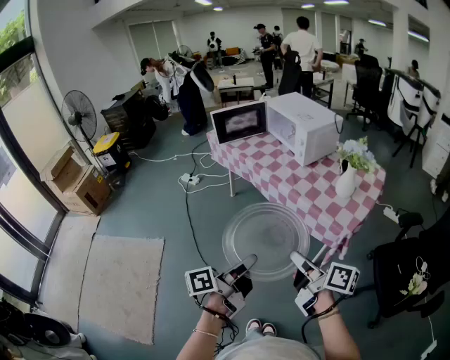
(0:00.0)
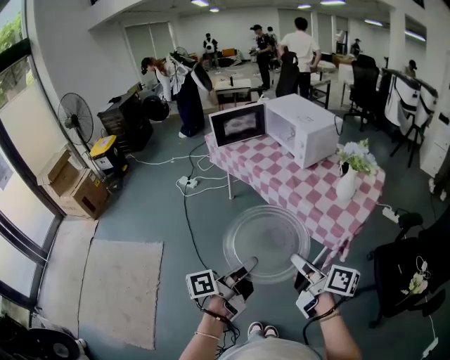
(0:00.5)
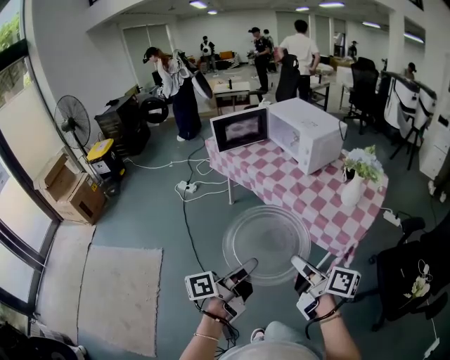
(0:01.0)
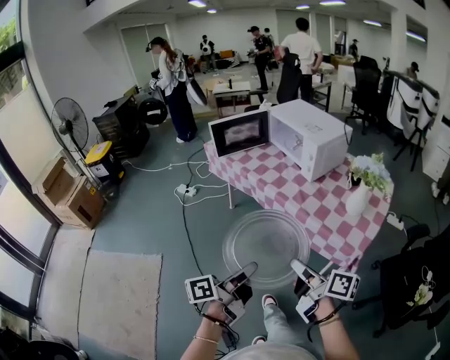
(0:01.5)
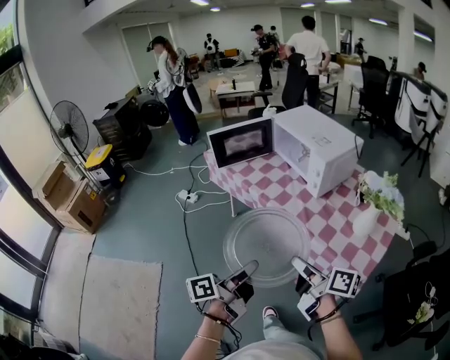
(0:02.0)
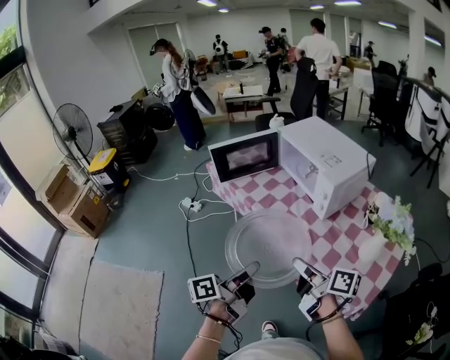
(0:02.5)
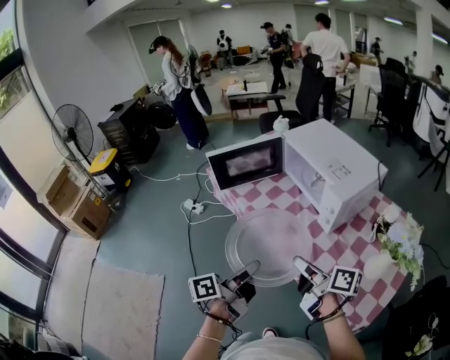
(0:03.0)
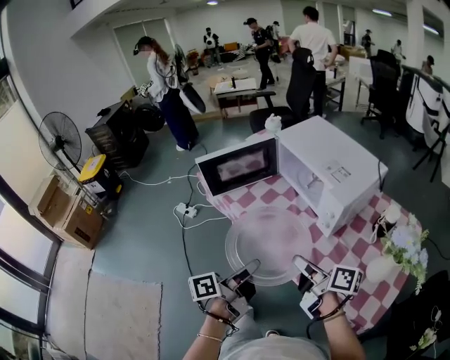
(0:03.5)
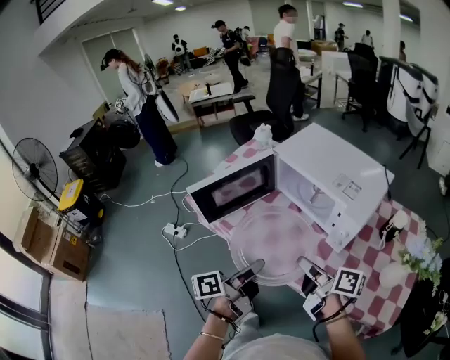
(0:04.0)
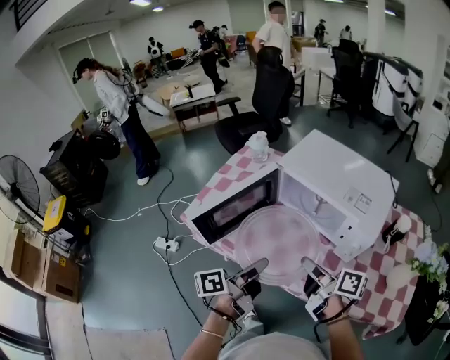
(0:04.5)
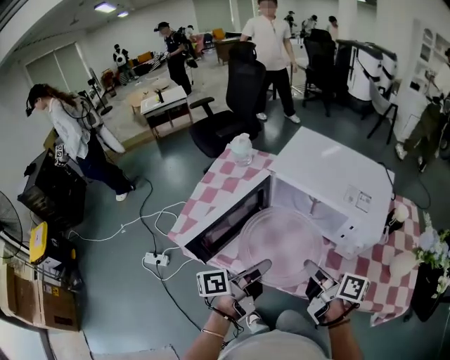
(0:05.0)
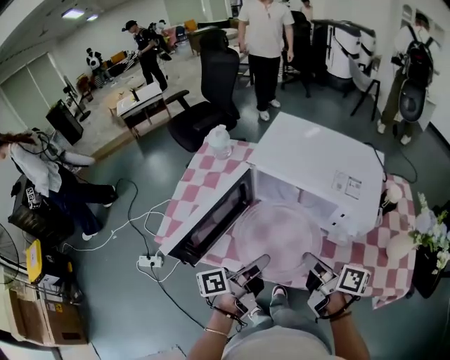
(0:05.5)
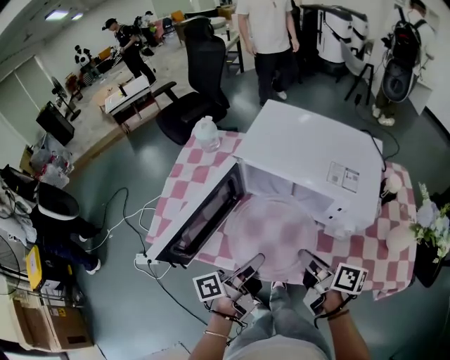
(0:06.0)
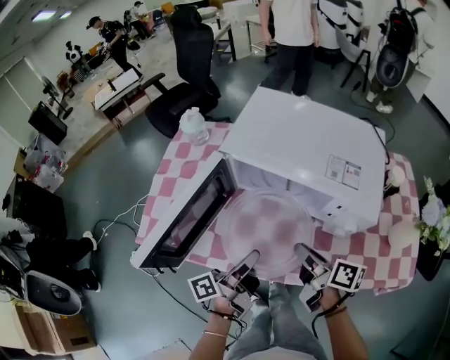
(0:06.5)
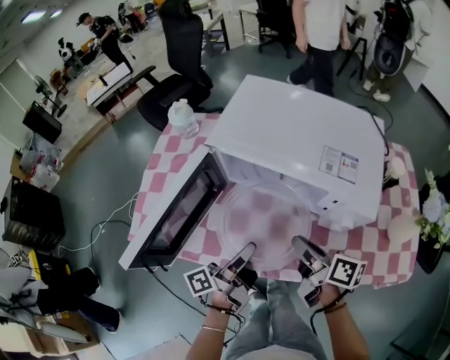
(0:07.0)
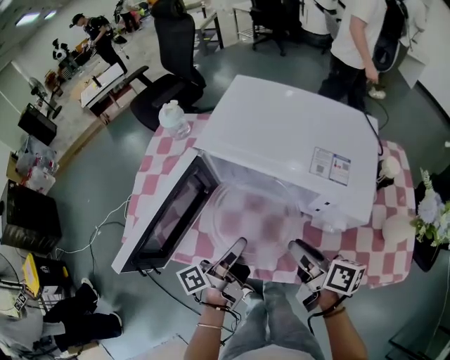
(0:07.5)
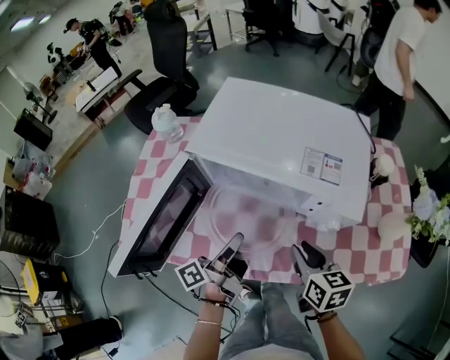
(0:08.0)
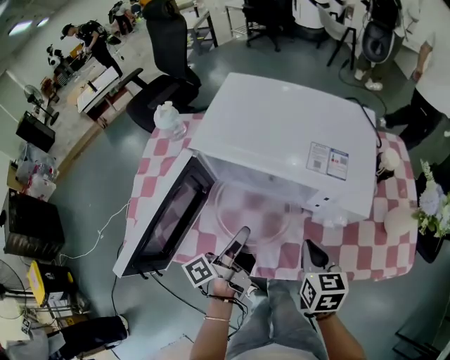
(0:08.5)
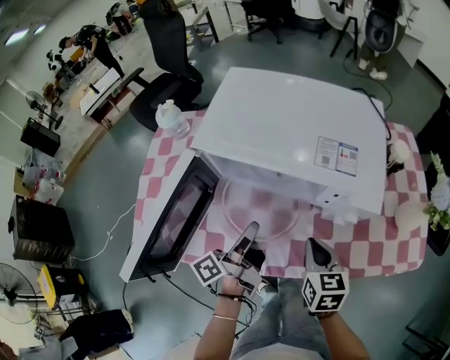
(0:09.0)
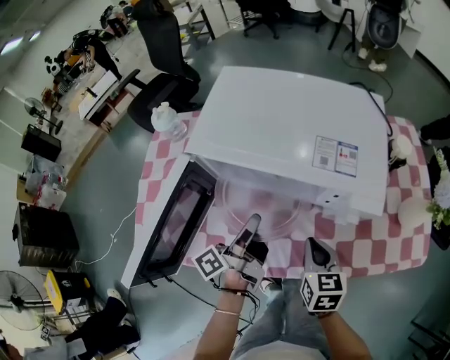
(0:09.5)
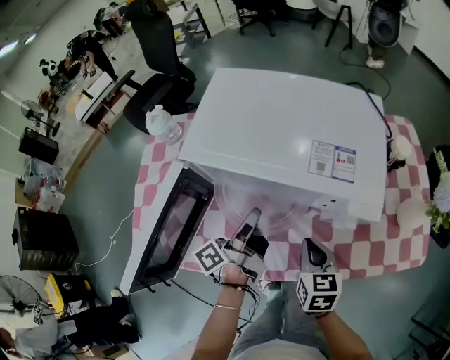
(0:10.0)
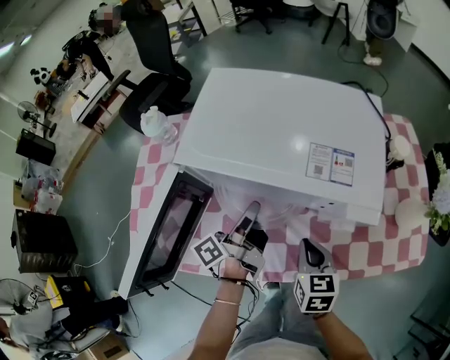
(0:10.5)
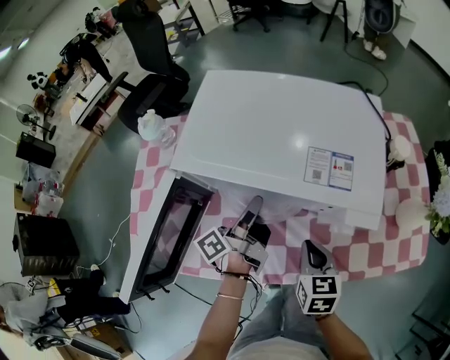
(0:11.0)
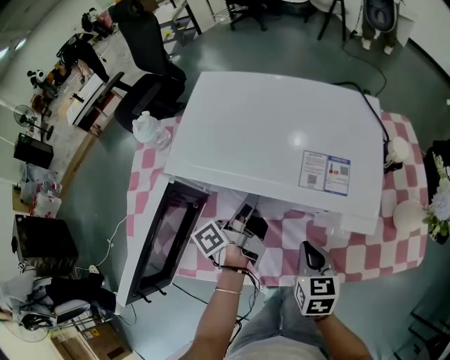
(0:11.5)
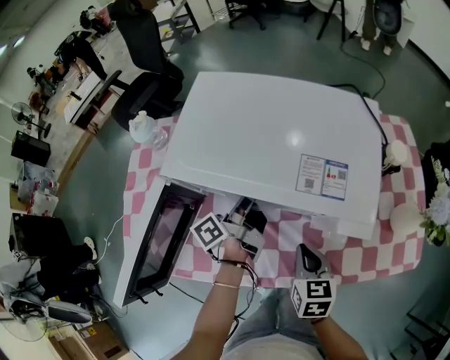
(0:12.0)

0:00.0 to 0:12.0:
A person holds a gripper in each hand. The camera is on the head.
0:00.0 to 0:02.0: Both grippers move forward, about 20 cm.
0:02.0 to 0:04.0: The two grippers go some 35 cm forward.
0:04.0 to 0:06.0: The right gripper travels forward and downward by some 10 cm, and turns by about 30 degrees; the left gripper travels forward by approximately 15 cm, and swivels roughly 20 degrees.
0:06.0 to 0:08.0: The right gripper travels to the right by approximately 5 cm, and swivels roughly 40 degrees. Meanwhile the left gripper is displaced forward by approximately 5 cm.
0:08.0 to 0:10.0: The left gripper goes some 5 cm forward; the right gripper closes.
0:10.0 to 0:12.0: The left gripper heads forward, covering roughly 10 cm.

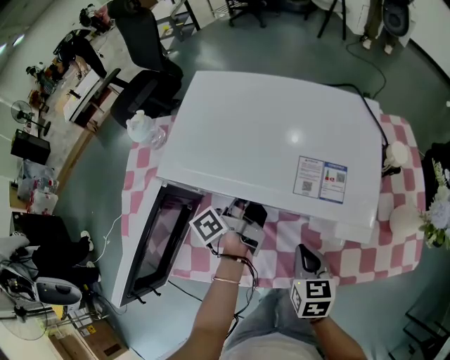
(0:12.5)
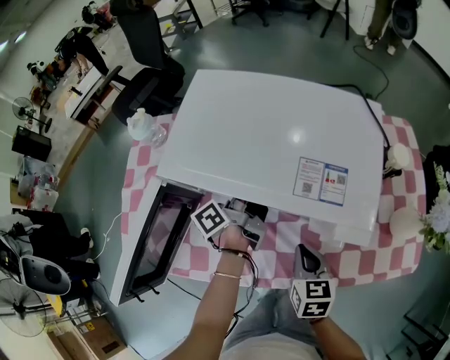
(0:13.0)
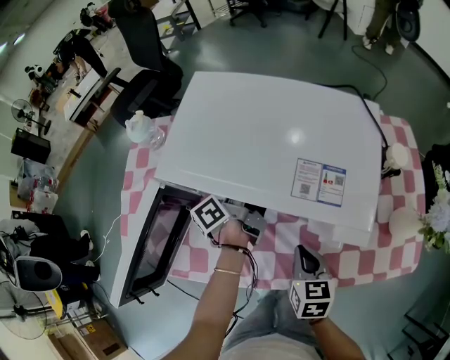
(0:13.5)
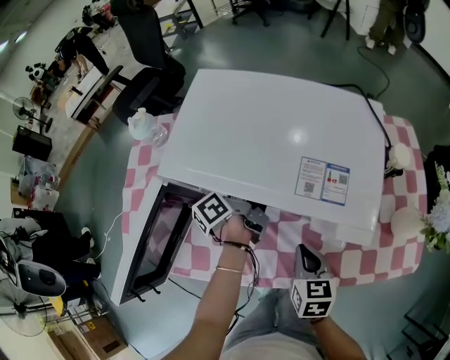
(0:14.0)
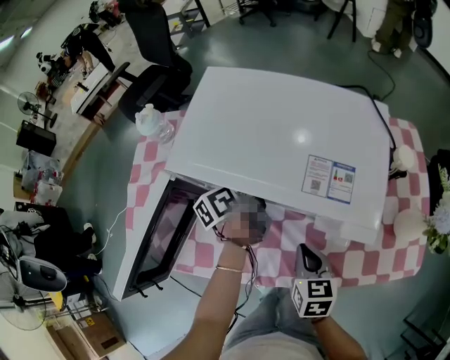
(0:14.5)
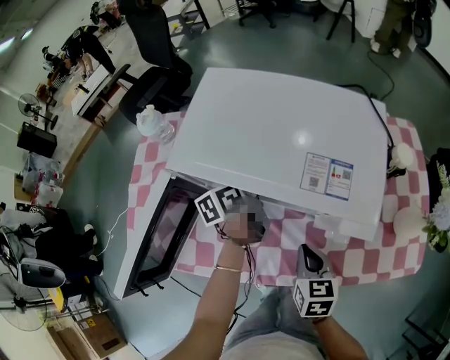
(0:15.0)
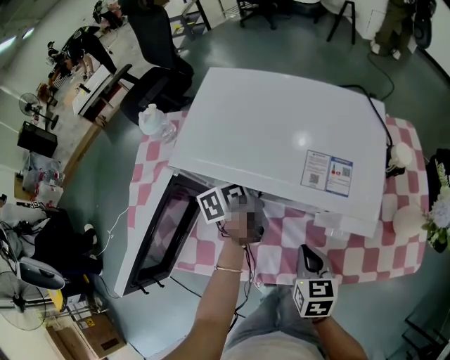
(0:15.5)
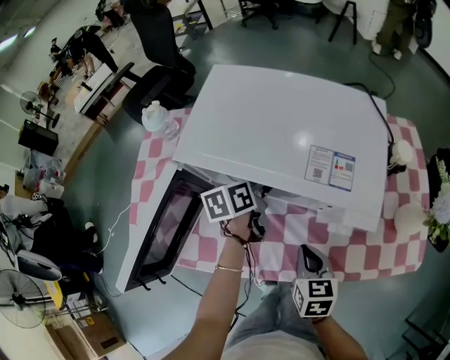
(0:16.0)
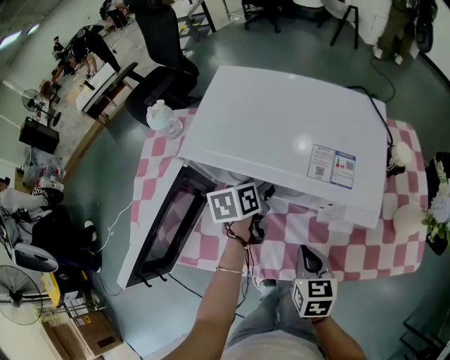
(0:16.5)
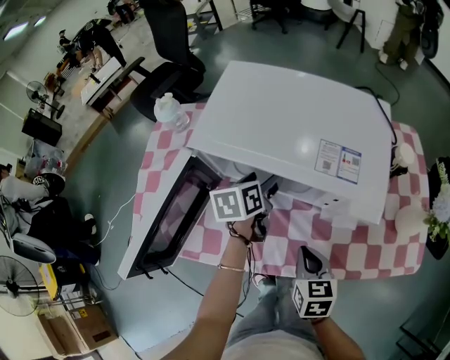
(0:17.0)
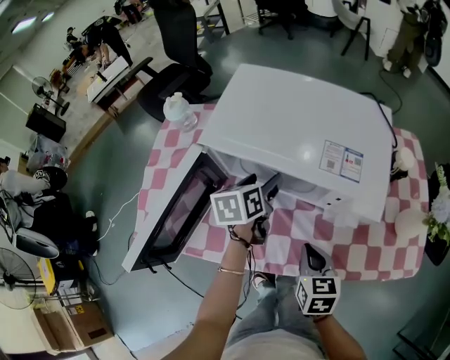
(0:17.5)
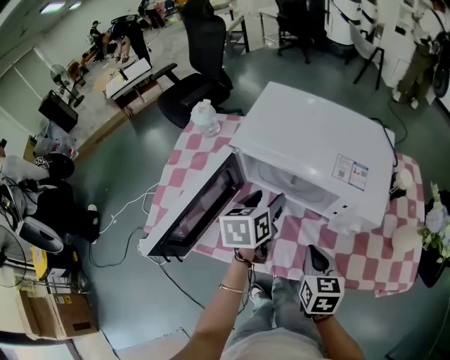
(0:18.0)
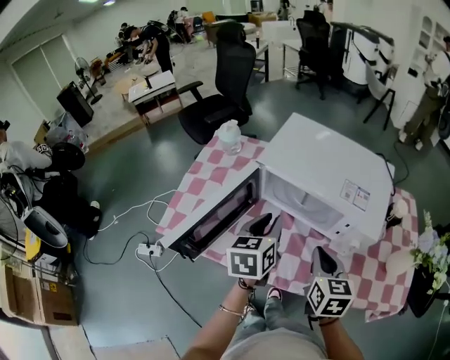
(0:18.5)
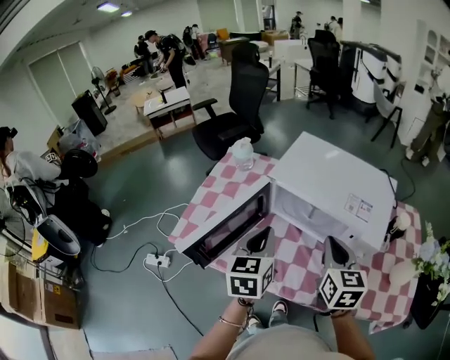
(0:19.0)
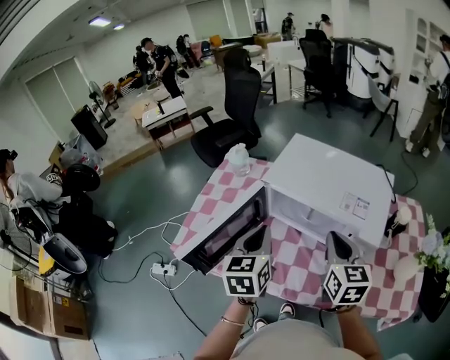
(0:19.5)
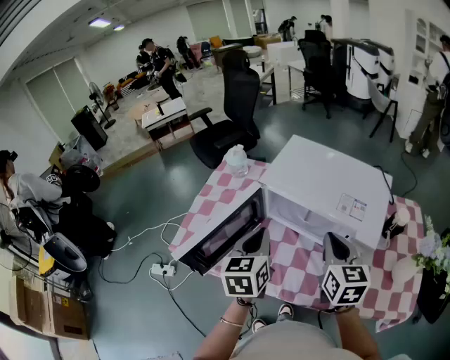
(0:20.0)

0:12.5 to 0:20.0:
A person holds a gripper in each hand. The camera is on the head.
0:12.5 to 0:14.5: The left gripper swivels about 20 degrees.
0:14.5 to 0:16.5: The left gripper turns by roughly 30 degrees, and opens its fingers.
0:16.5 to 0:18.0: The right gripper travels upward by roughly 5 cm. The left gripper heads upward and backward, covering about 10 cm.
0:18.0 to 0:20.0: The left gripper is displaced upward, backward and to the left by roughly 15 cm, turns by about 20 degrees, and closes. Meanwhile the right gripper shifts approximately 15 cm upward and forward, and rotates roughly 20 degrees.

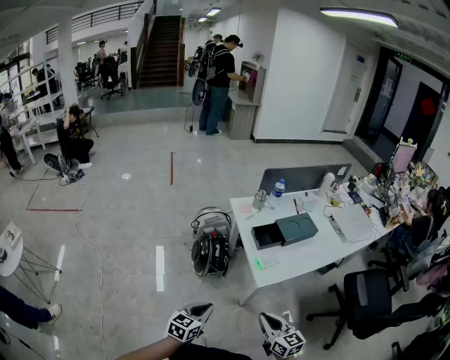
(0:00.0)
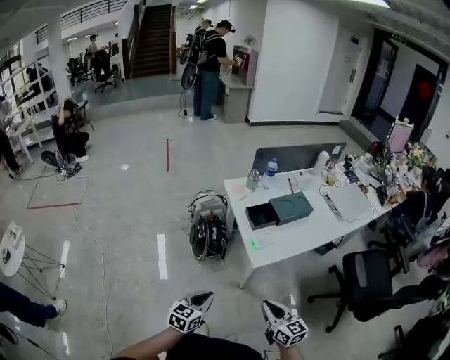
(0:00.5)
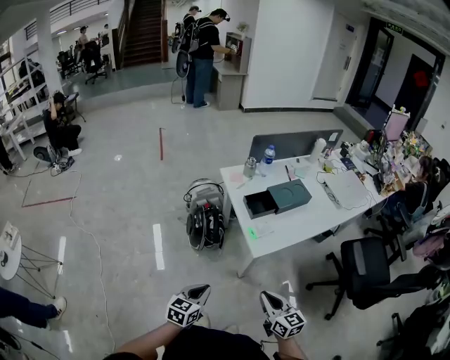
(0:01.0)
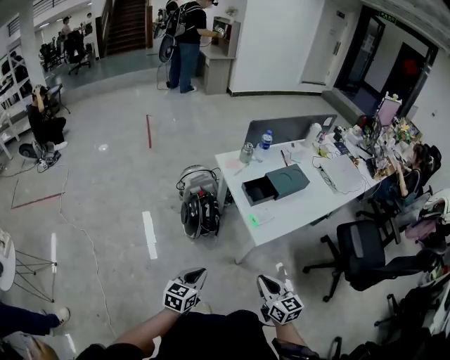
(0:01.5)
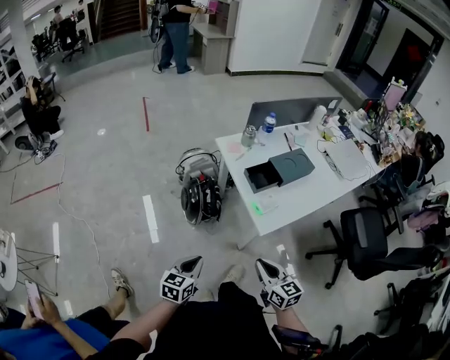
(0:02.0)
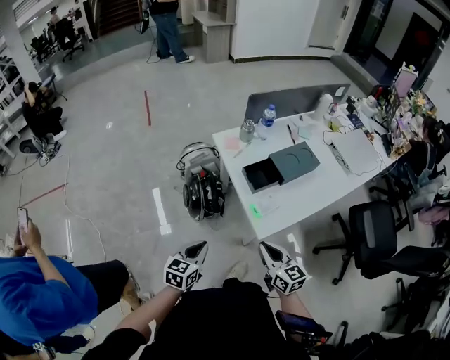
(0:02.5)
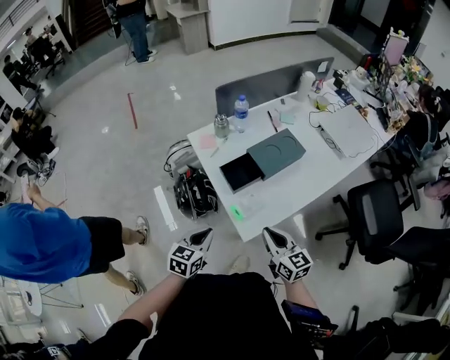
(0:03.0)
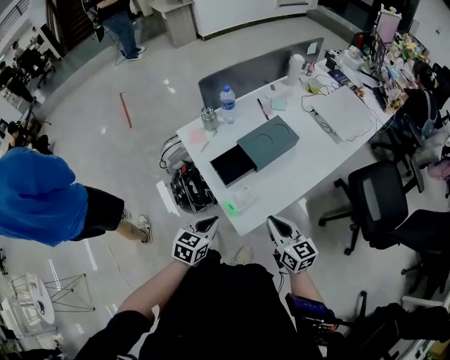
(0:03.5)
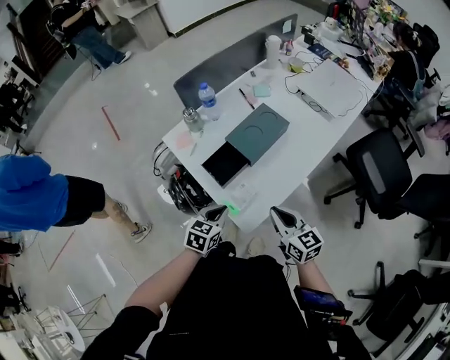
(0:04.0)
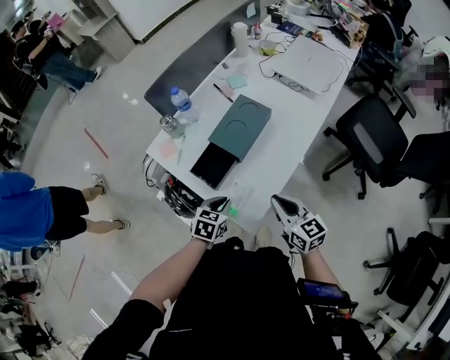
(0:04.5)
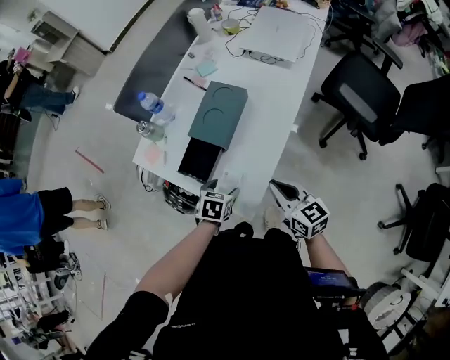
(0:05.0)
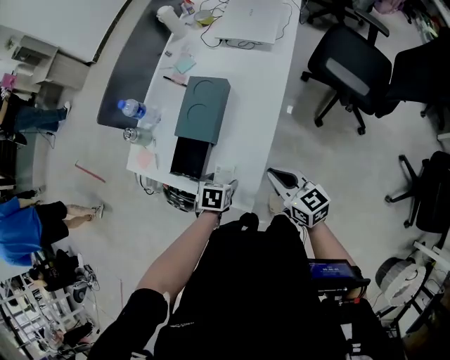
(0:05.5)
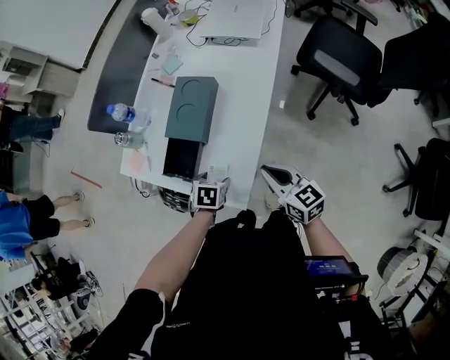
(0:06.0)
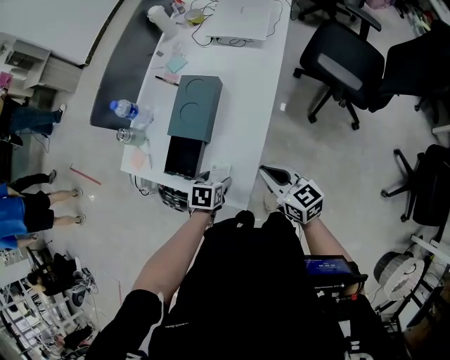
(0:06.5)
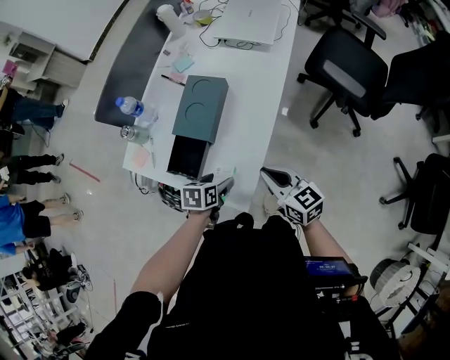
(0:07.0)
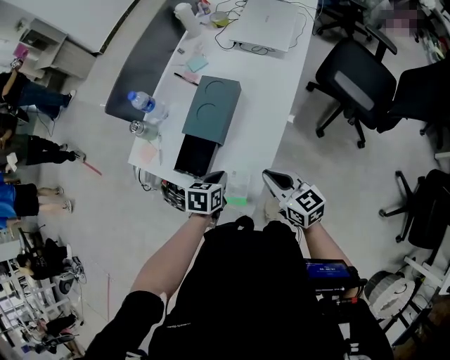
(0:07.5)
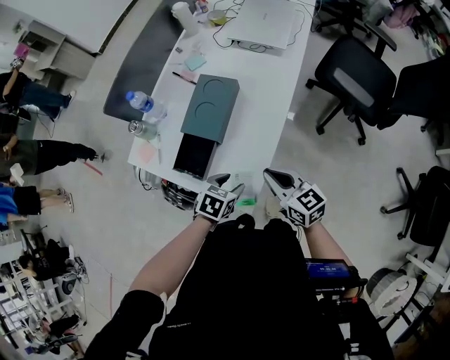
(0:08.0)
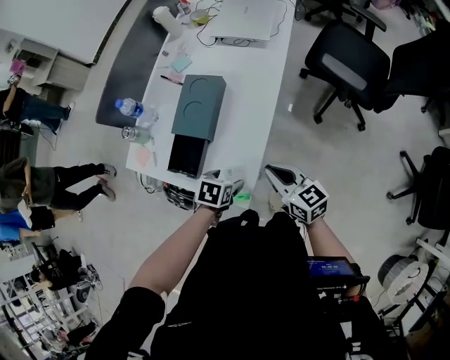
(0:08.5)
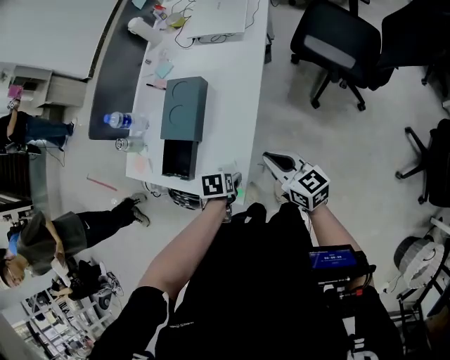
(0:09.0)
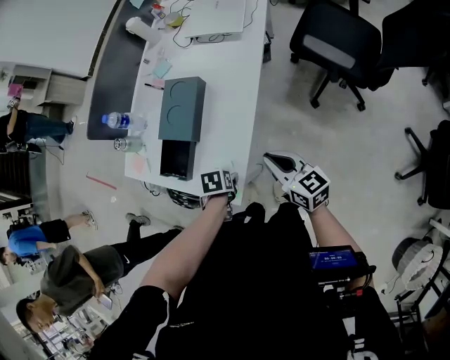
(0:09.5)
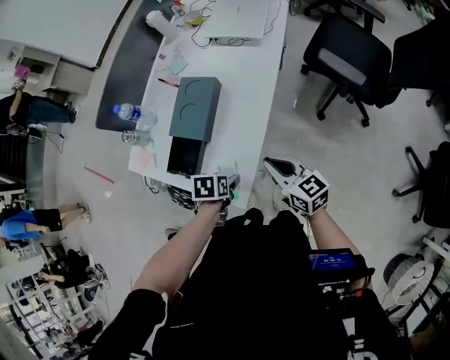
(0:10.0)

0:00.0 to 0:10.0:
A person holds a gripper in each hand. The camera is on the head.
0:00.0 to 0:02.0: The right gripper shifts by about 5 cm. The left gripper is displaced to the left by some 5 cm.
0:02.0 to 0:04.0: The two grippers go about 30 cm forward and to the right. The left gripper swivels about 30 degrees.
0:04.0 to 0:06.0: The right gripper goes approximately 5 cm to the right, and changes its angle by roughly 20 degrees, while the left gripper heads downward and forward, covering about 15 cm, swivels approximately 30 degrees, and opens its fingers.
0:06.0 to 0:08.0: The left gripper moves upward, about 5 cm, and closes and opens again.
0:08.0 to 0:10.0: The left gripper rotates some 30 degrees.
